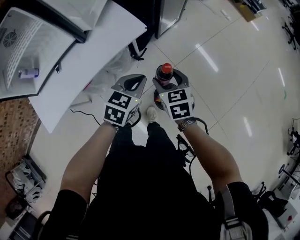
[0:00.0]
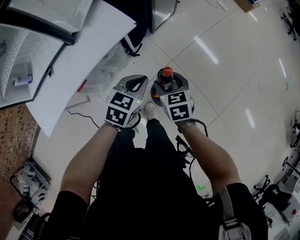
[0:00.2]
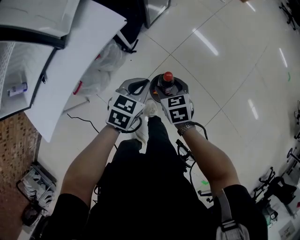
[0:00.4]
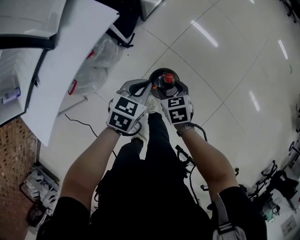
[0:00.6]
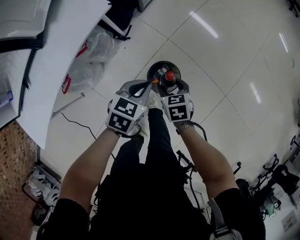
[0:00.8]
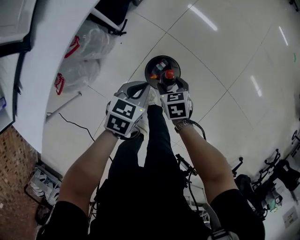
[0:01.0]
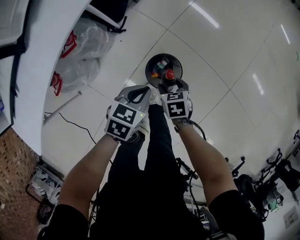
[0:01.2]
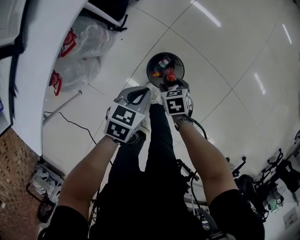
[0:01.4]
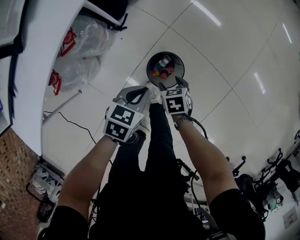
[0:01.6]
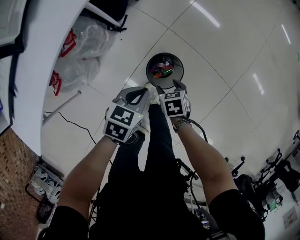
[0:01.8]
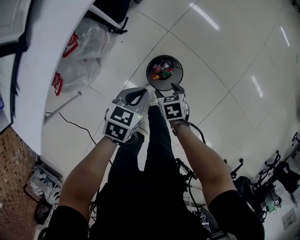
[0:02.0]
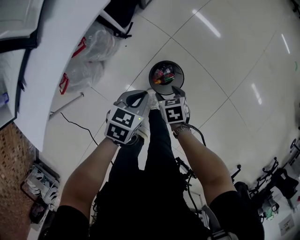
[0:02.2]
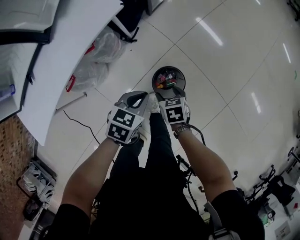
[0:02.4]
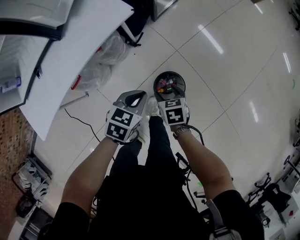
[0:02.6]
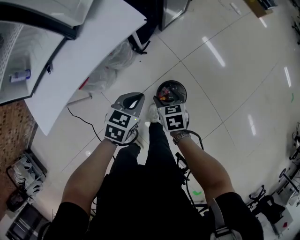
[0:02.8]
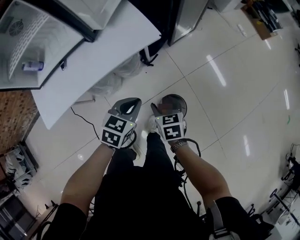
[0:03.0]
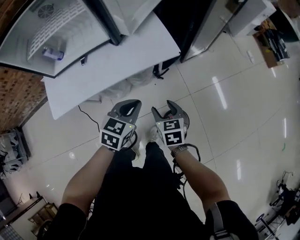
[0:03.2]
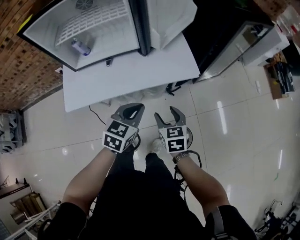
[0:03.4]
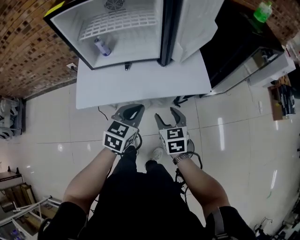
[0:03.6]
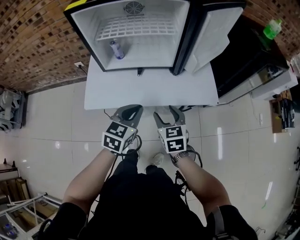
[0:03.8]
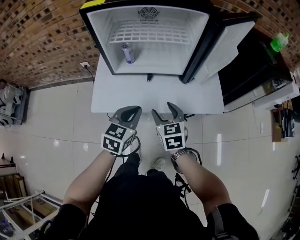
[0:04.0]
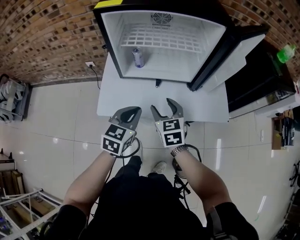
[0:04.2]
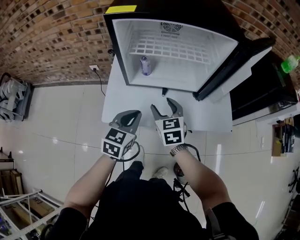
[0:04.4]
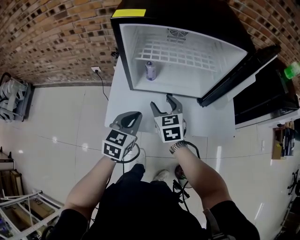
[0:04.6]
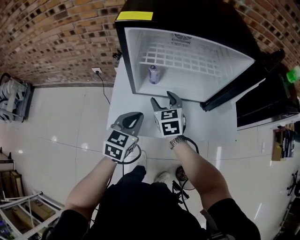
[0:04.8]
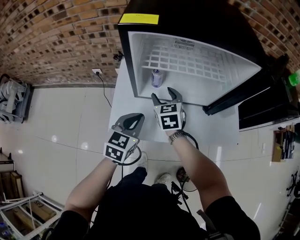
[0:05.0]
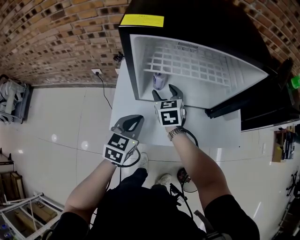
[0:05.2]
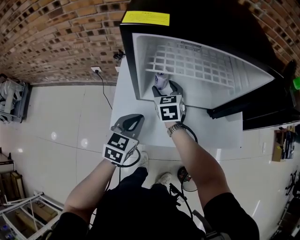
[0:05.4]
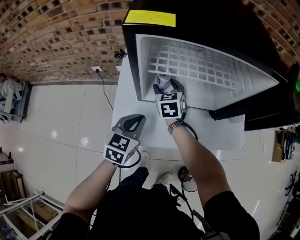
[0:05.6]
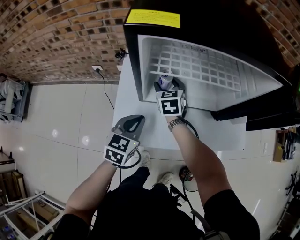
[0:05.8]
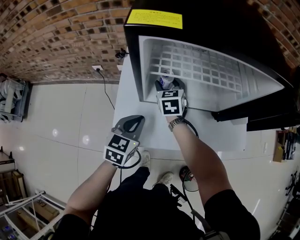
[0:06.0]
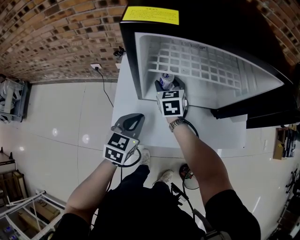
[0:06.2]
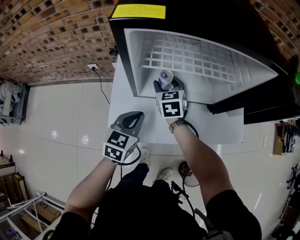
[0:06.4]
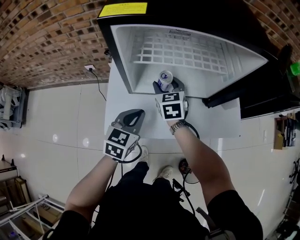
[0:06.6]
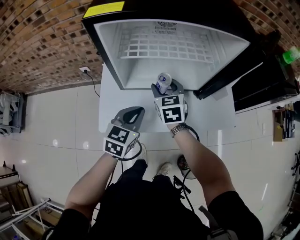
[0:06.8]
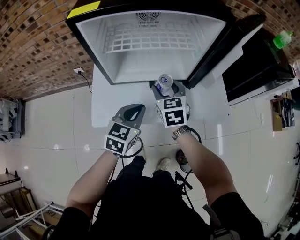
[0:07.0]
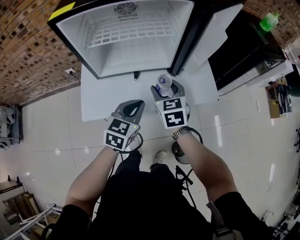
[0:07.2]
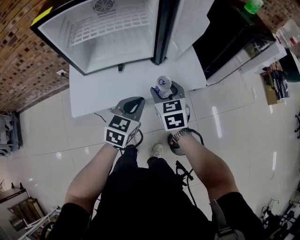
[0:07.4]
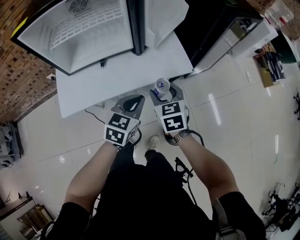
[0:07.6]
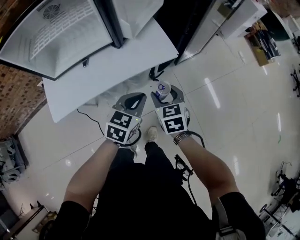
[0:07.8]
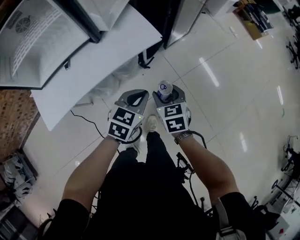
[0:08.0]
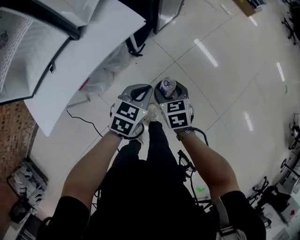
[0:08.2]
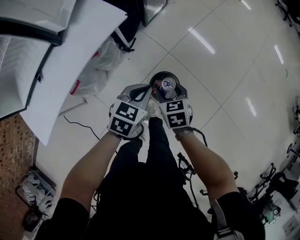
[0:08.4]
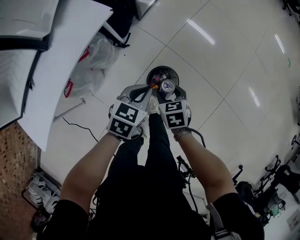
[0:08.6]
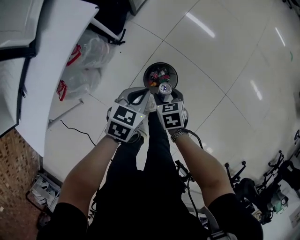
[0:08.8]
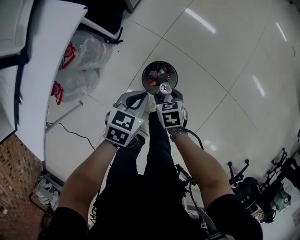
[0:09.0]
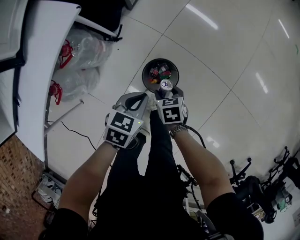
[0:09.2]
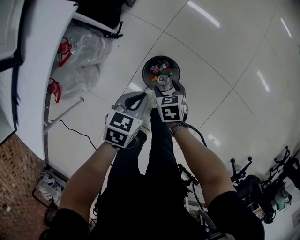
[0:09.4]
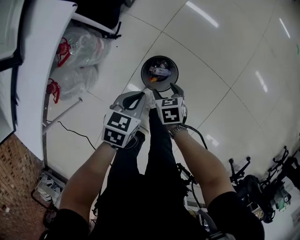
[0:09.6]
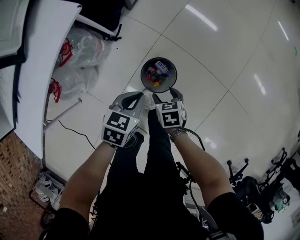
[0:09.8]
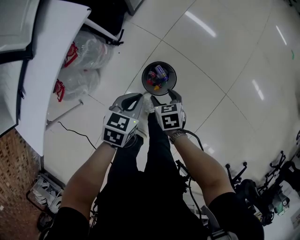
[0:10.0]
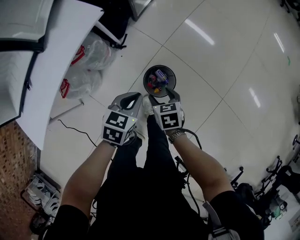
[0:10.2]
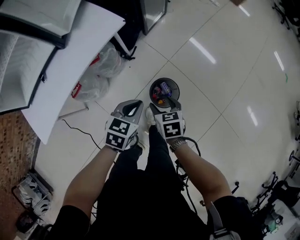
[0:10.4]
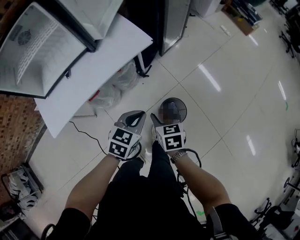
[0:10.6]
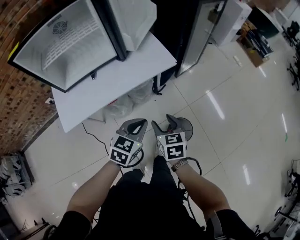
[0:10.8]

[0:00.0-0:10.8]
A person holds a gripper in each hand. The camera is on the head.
0:00.0 to 0:01.6: The two grippers go some 25 cm downward. The left gripper changes its angle by some 20 degrees. Meanwhile the right gripper changes its angle by approximately 30 degrees.
0:01.6 to 0:03.0: The grippers both shift upward and to the left by some 25 cm. The left gripper rotates roughly 30 degrees. The right gripper swivels some 30 degrees.
0:03.0 to 0:04.6: Both grippers are carried roughly 50 cm. The left gripper turns by some 40 degrees. The right gripper swivels about 40 degrees.
0:04.6 to 0:06.2: The left gripper travels forward and to the left by about 10 cm. The right gripper is displaced forward and to the left by roughly 20 cm.
0:06.2 to 0:07.8: The pair of grippers is taken about 50 cm. The left gripper swivels approximately 30 degrees; the right gripper swivels about 20 degrees.
0:07.8 to 0:09.2: Both grippers travel together downward, some 30 cm. The left gripper swivels roughly 40 degrees. Meanwhile the right gripper rotates roughly 50 degrees.
0:09.2 to 0:10.8: Both grippers travel together upward, roughly 25 cm. The right gripper swivels approximately 40 degrees; the left gripper rotates roughly 40 degrees.

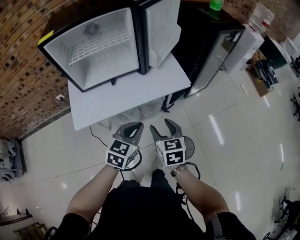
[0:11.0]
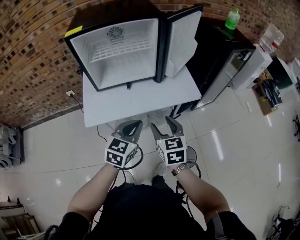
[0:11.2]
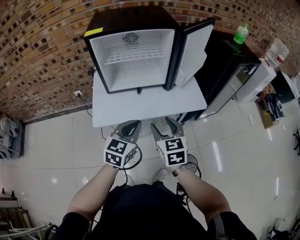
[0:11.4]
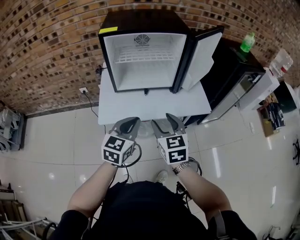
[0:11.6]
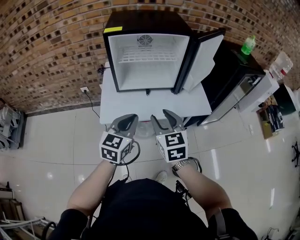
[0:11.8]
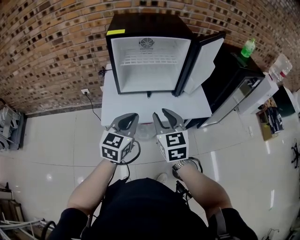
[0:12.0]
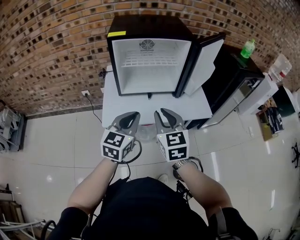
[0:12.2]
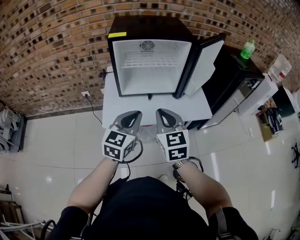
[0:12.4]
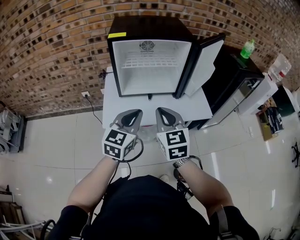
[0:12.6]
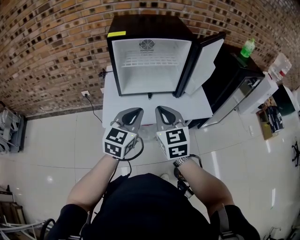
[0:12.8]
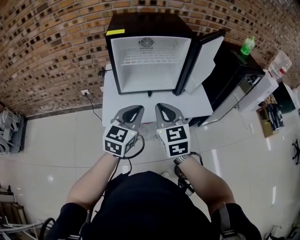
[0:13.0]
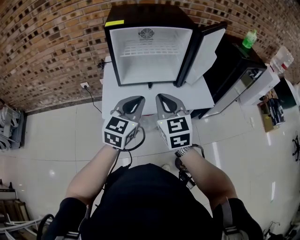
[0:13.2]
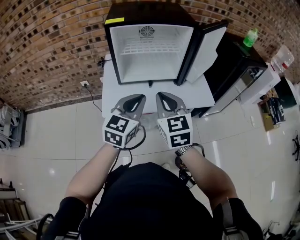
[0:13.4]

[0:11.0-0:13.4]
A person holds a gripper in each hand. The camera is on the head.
0:11.0 to 0:12.2: The grippers both shift to the left and upward by about 25 cm. The left gripper swivels about 30 degrees. The right gripper rotates some 30 degrees, and closes its fingers.
0:12.2 to 0:13.4: The grippers move only a little.

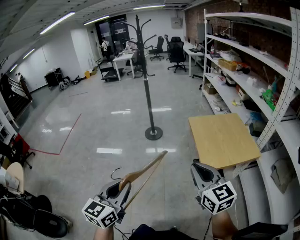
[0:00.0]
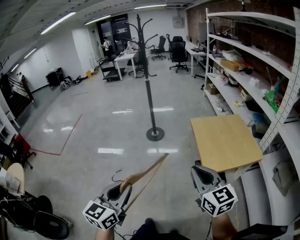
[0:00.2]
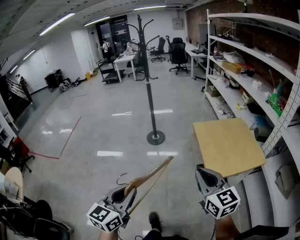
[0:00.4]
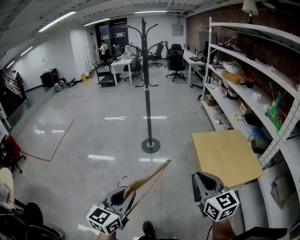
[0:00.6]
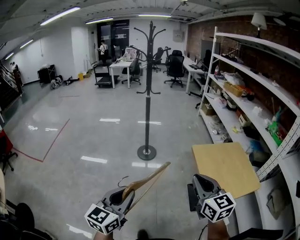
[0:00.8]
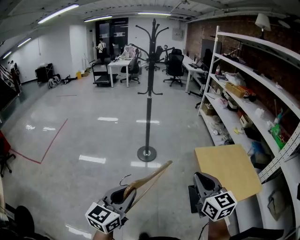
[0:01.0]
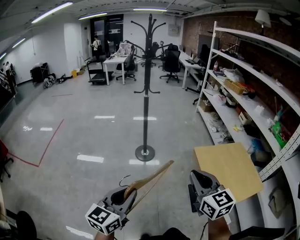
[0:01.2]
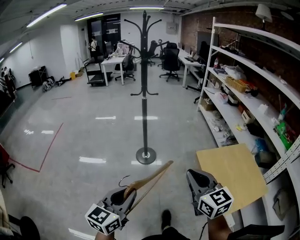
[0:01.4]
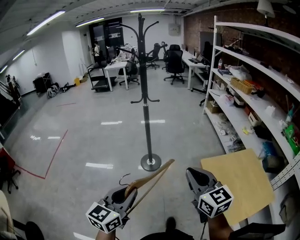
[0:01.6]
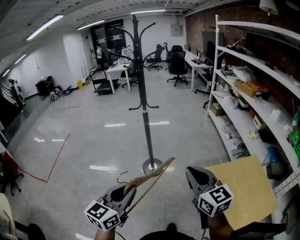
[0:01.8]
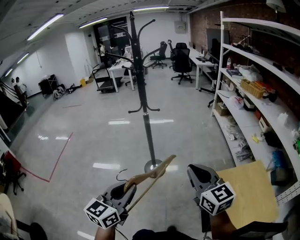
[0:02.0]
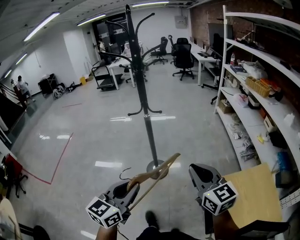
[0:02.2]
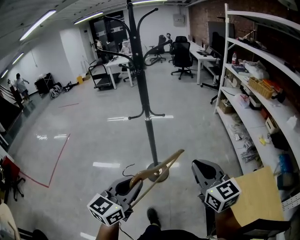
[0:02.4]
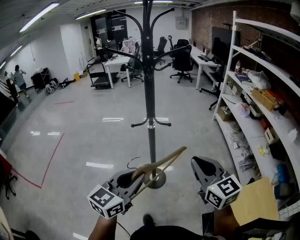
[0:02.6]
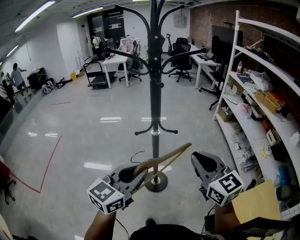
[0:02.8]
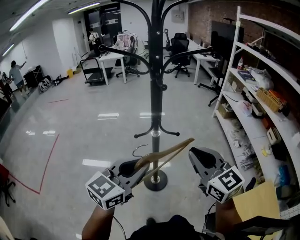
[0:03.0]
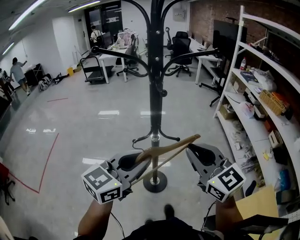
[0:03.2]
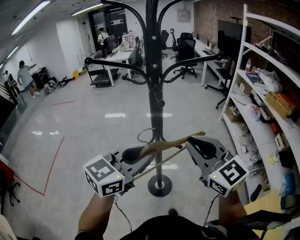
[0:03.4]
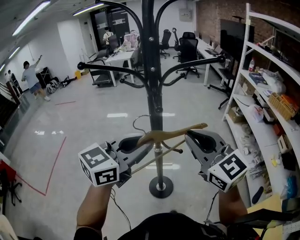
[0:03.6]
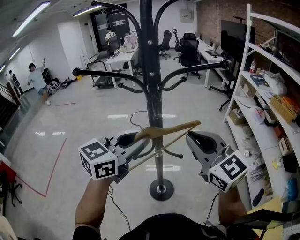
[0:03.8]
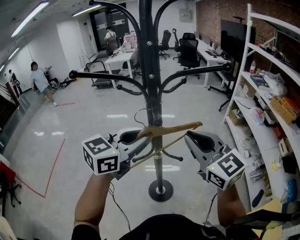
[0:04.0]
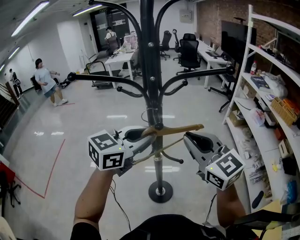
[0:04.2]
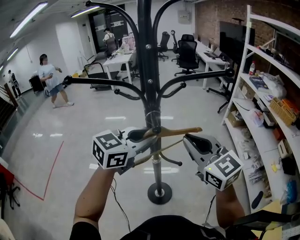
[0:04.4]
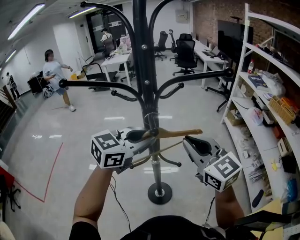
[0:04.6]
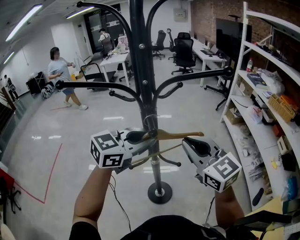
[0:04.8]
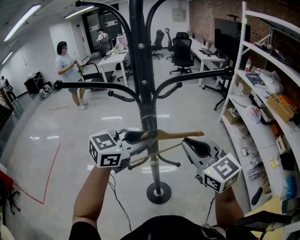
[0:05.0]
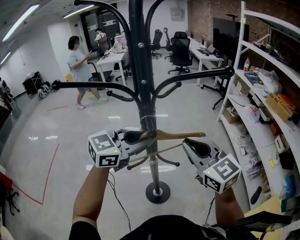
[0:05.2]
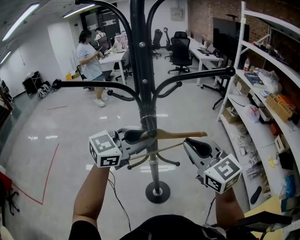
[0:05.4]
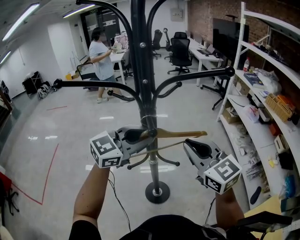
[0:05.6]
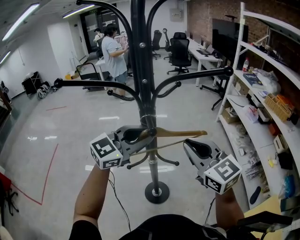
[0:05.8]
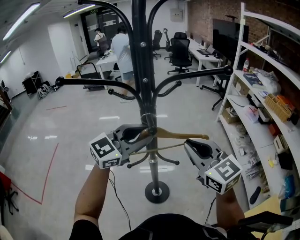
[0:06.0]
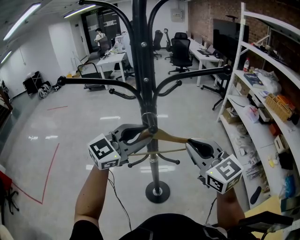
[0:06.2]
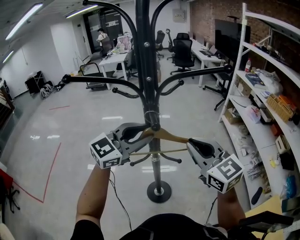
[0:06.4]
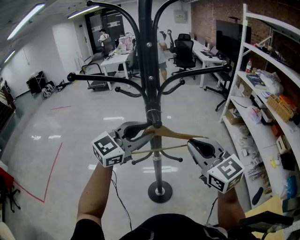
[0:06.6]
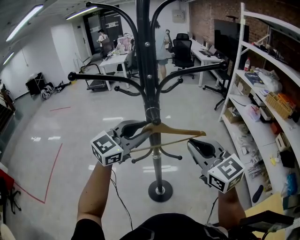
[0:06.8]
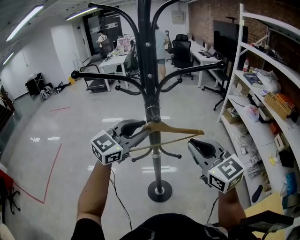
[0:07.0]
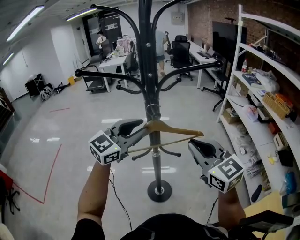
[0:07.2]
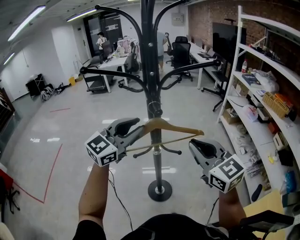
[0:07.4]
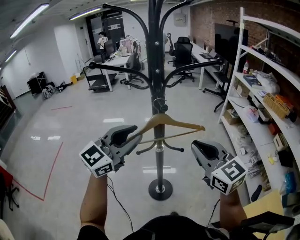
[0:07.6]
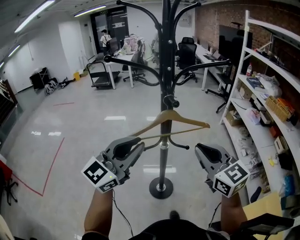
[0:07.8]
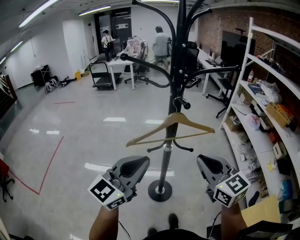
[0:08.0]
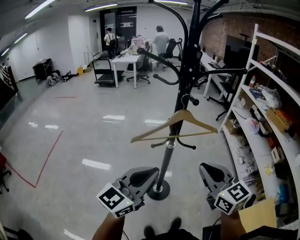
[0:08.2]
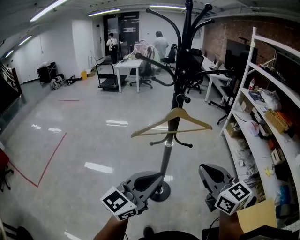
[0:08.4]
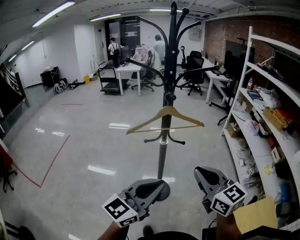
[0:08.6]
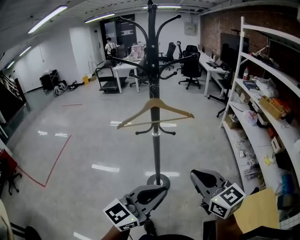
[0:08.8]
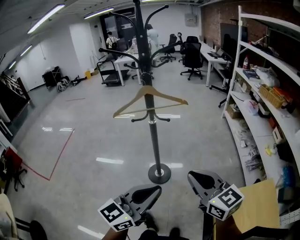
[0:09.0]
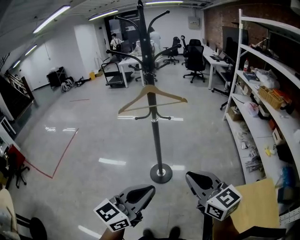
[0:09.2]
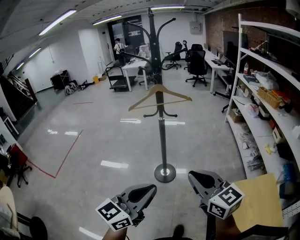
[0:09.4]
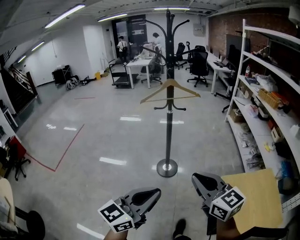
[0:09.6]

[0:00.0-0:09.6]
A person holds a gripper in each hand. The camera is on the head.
0:00.0 to 0:01.6: The two grippers travel together, forward, about 40 cm.
0:01.6 to 0:03.2: The two grippers travel together, forward, some 50 cm.
0:03.2 to 0:04.8: The grippers both shift forward by about 15 cm.
0:04.8 to 0:06.4: The grippers move only a little.
0:06.4 to 0:08.0: The right gripper moves backward, about 10 cm. The left gripper shifts roughly 20 cm backward, changes its angle by approximately 20 degrees, and closes.
0:08.0 to 0:09.6: Both grippers travel together backward, roughly 40 cm.

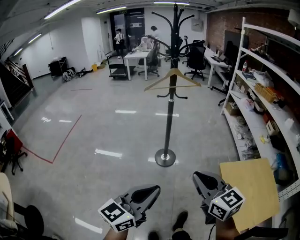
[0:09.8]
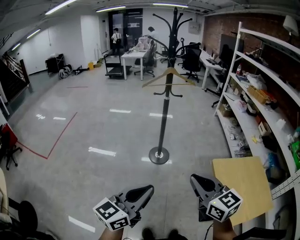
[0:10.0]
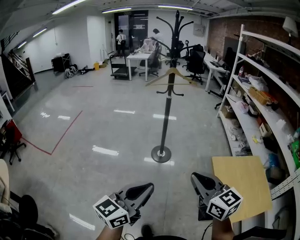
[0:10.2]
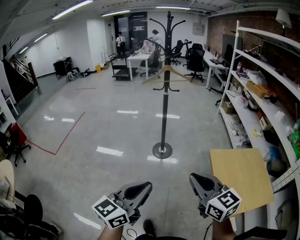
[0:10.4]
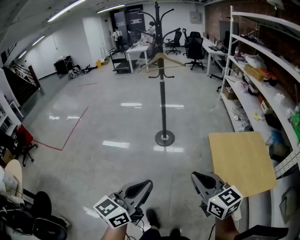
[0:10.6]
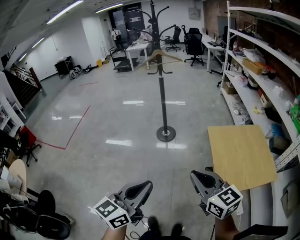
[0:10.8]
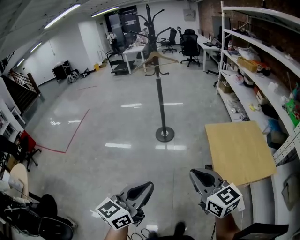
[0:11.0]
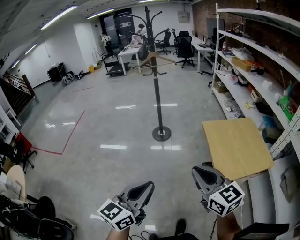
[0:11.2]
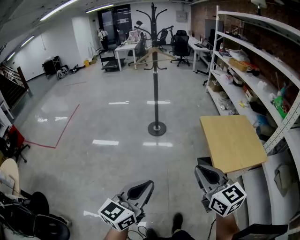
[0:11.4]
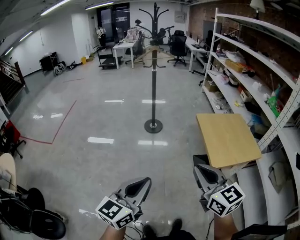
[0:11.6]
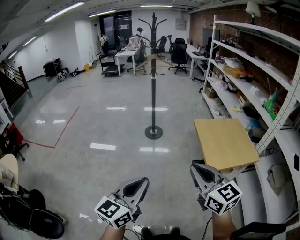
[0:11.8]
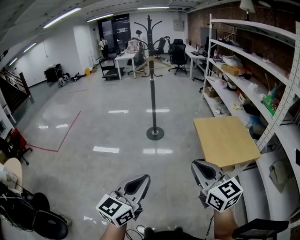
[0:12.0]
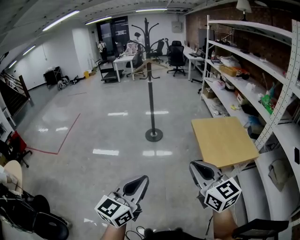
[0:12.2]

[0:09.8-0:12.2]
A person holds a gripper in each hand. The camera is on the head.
0:09.8 to 0:11.0: The grippers both shift backward by approximately 30 cm.
0:11.0 to 0:12.2: Both grippers travel together backward, roughly 15 cm.
